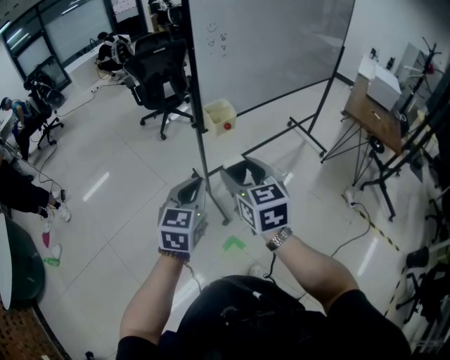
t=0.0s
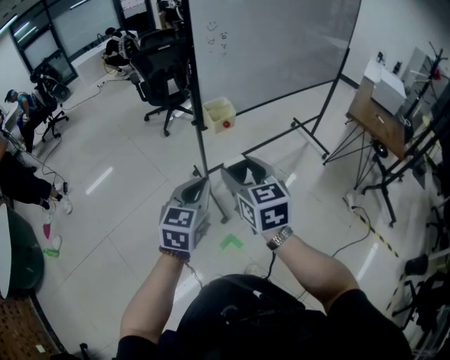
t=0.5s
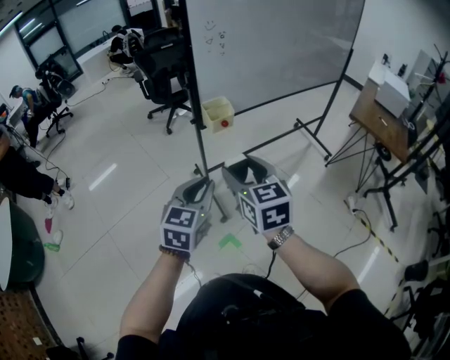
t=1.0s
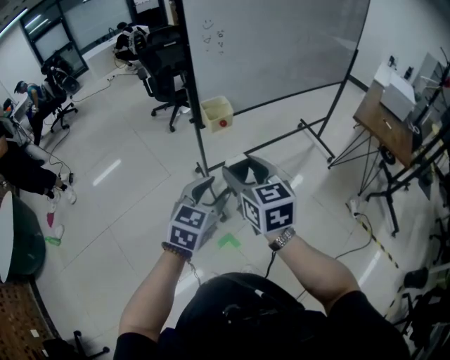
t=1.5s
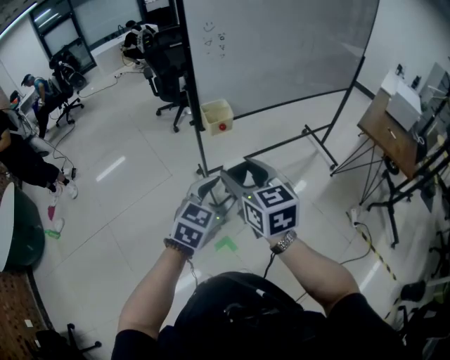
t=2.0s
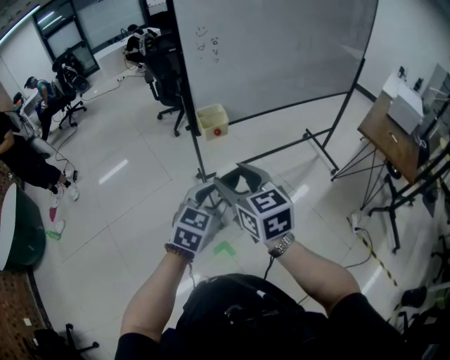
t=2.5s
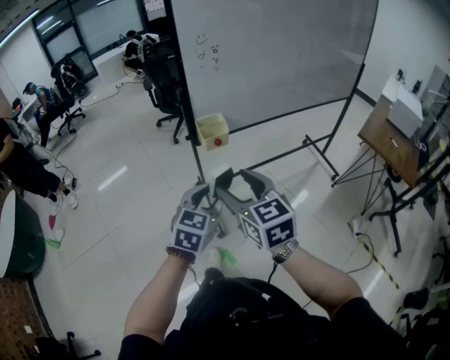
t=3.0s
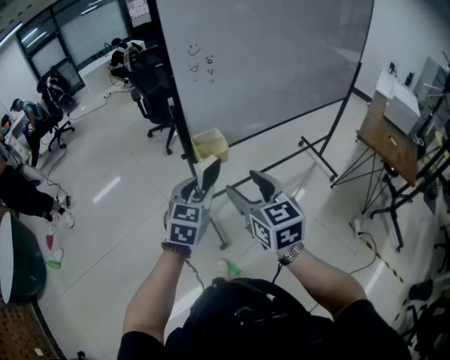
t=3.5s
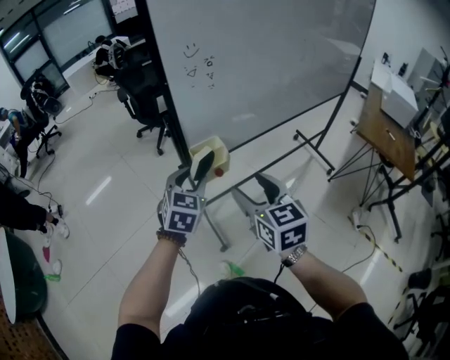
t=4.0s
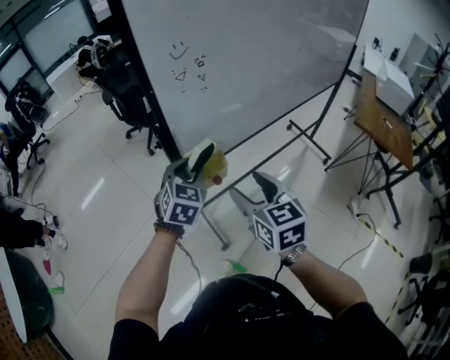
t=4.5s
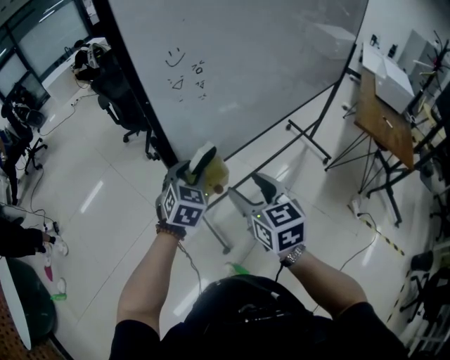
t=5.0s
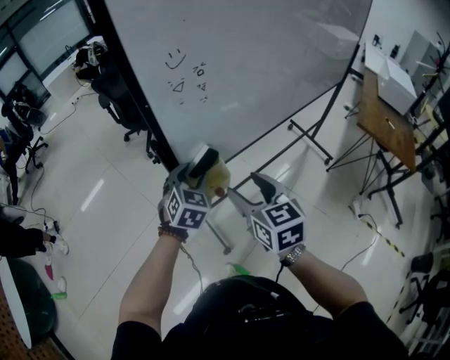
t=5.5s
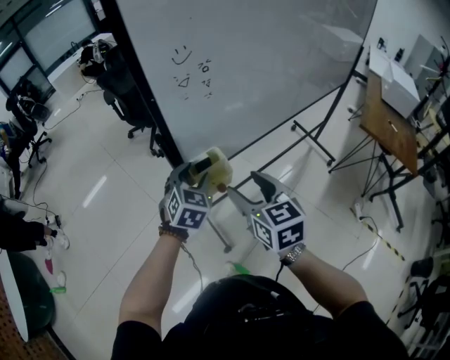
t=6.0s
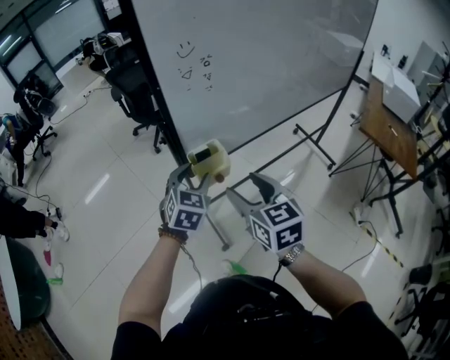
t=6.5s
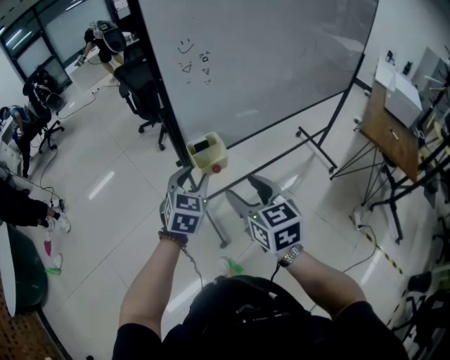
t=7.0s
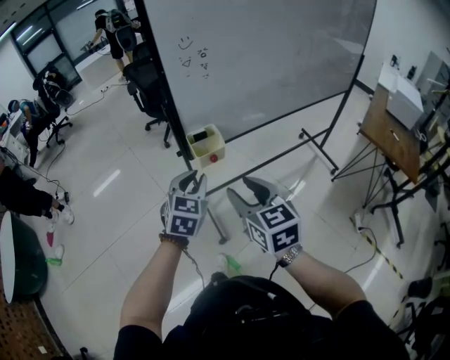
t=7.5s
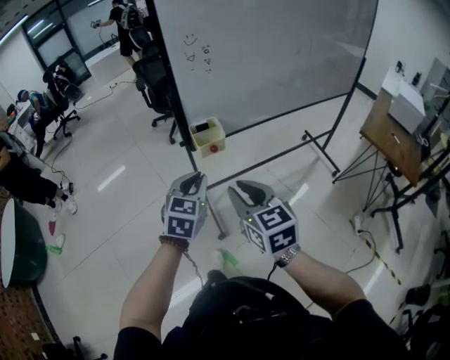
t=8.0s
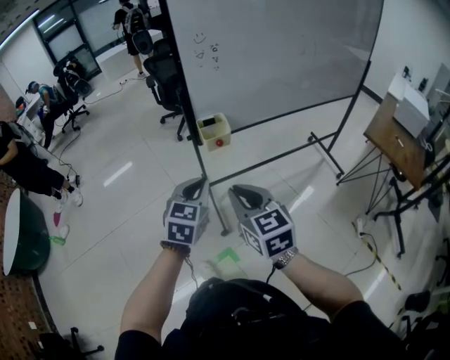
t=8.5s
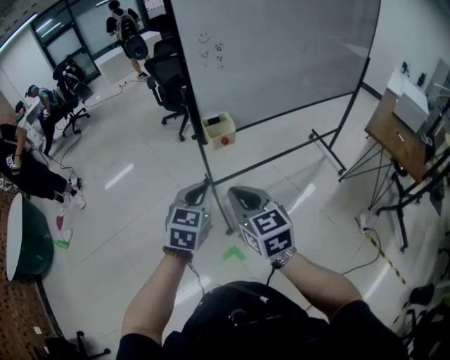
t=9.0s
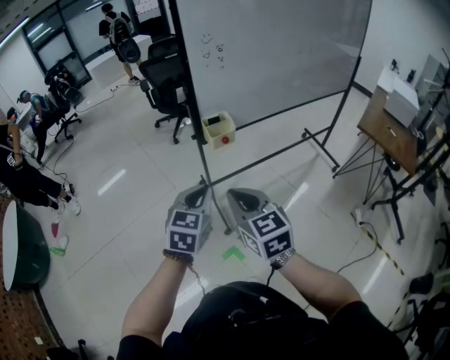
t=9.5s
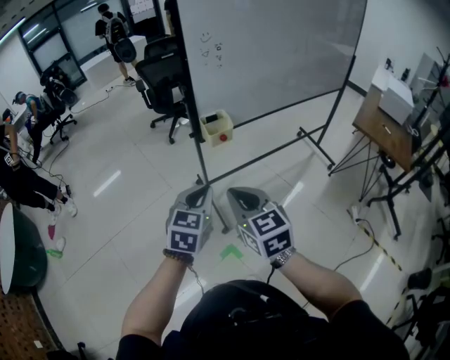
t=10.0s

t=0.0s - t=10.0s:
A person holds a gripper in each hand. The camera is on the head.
t=0.0s - t=2.0s: The left gripper heads to the right, covering some 15 cm, and opens. Meanwhile the right gripper heads to the right, covering approximately 10 cm.
t=2.0s - t=4.0s: The right gripper travels forward by some 20 cm. Meanwhile the left gripper shifts approximately 30 cm forward, and closes up.
t=4.0s - t=6.0s: The grippers both shift forward by about 10 cm.
t=6.0s - t=8.0s: The two grippers go about 20 cm backward. The right gripper closes its fingers; the left gripper closes up.
t=8.0s - t=10.0s: The left gripper is displaced backward by roughly 10 cm. Meanwhile the right gripper shifts approximately 10 cm to the left and backward.

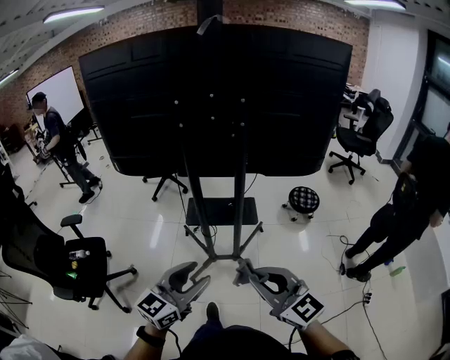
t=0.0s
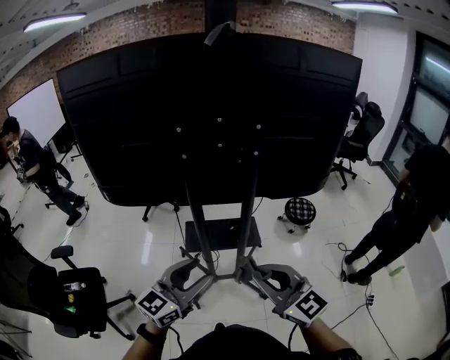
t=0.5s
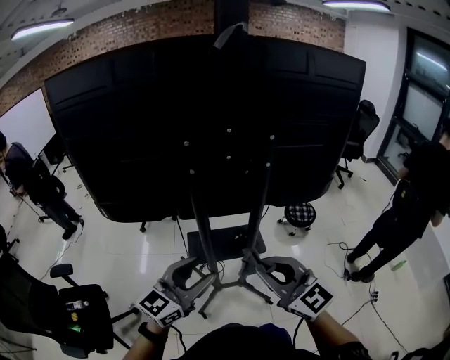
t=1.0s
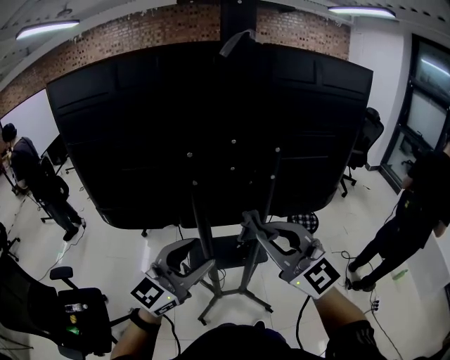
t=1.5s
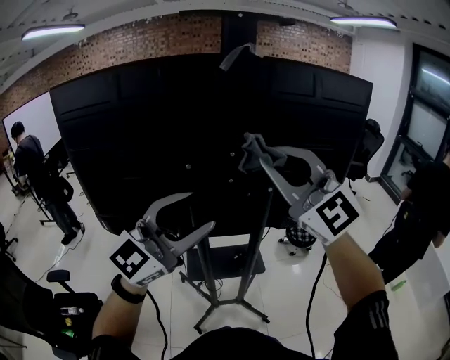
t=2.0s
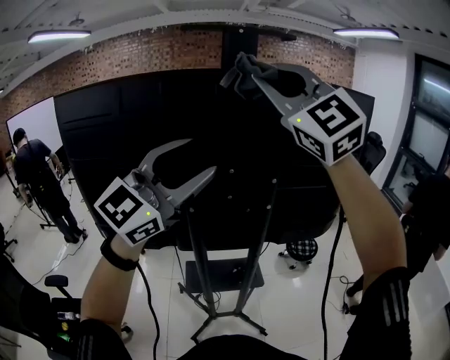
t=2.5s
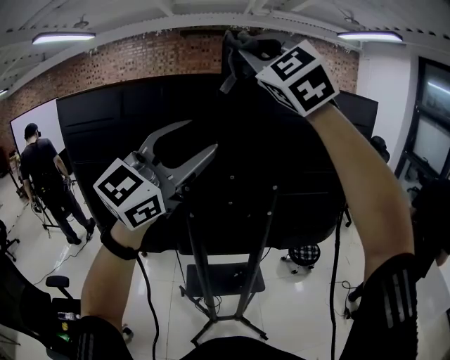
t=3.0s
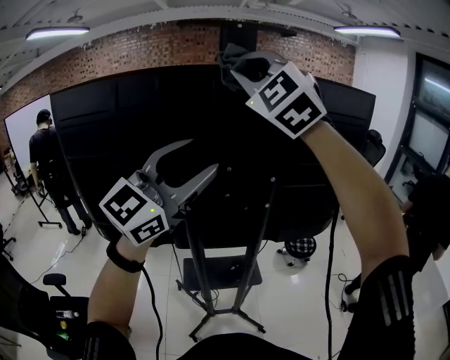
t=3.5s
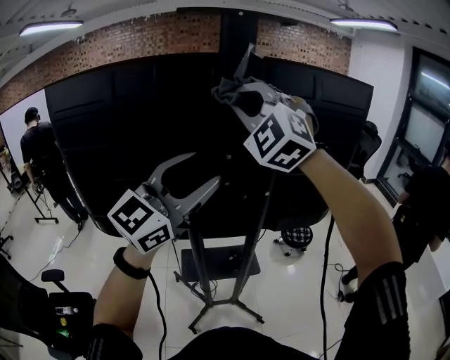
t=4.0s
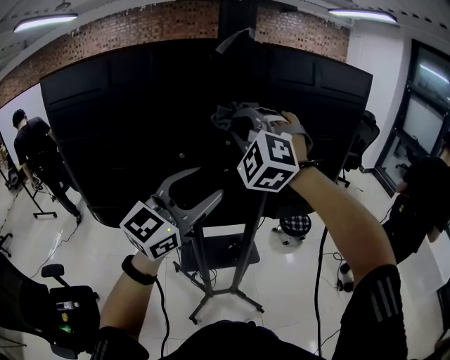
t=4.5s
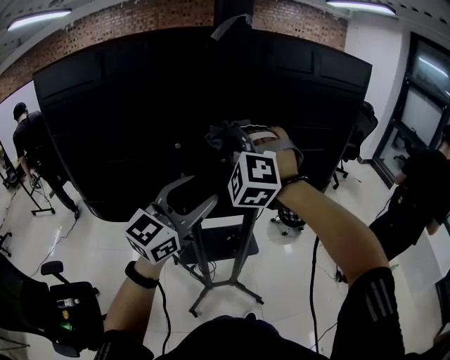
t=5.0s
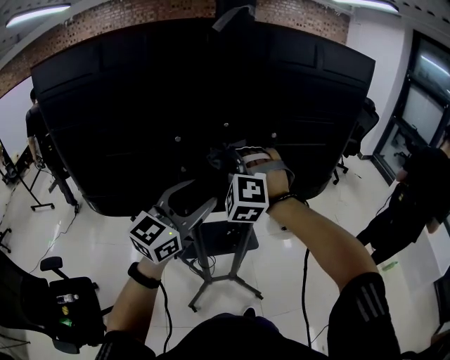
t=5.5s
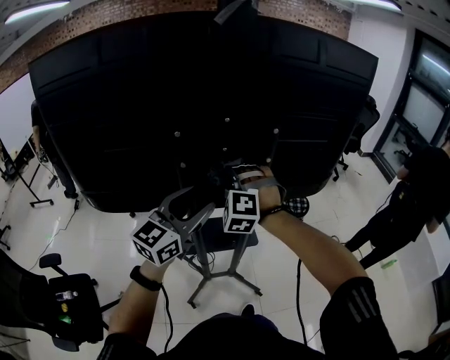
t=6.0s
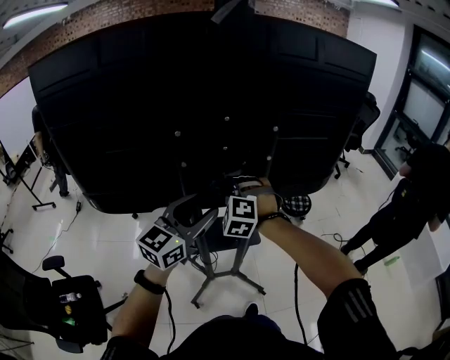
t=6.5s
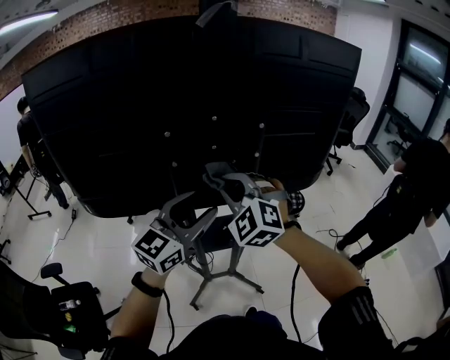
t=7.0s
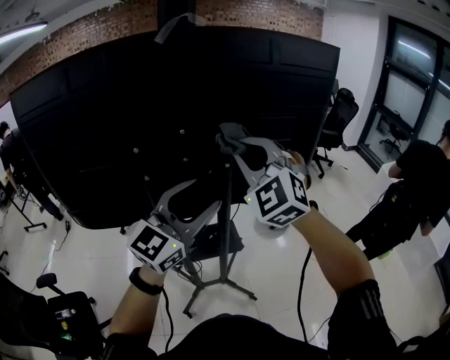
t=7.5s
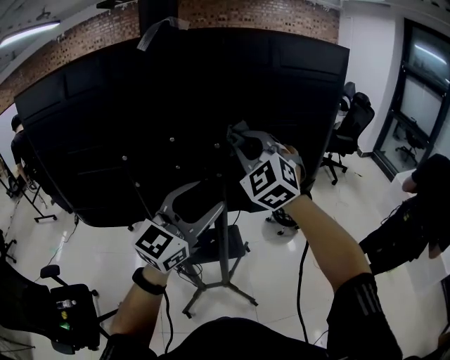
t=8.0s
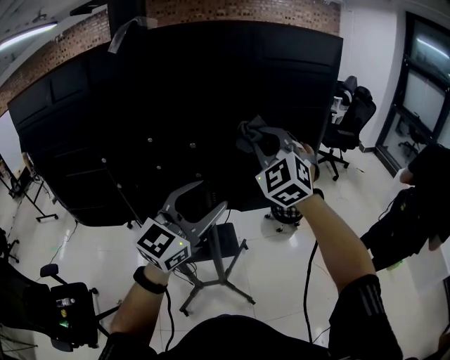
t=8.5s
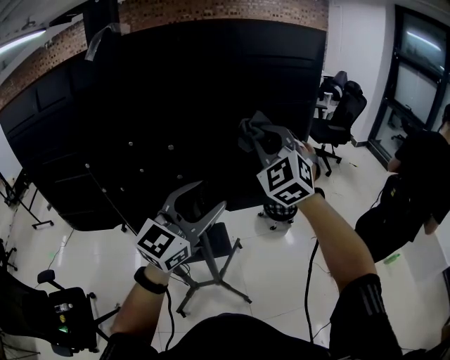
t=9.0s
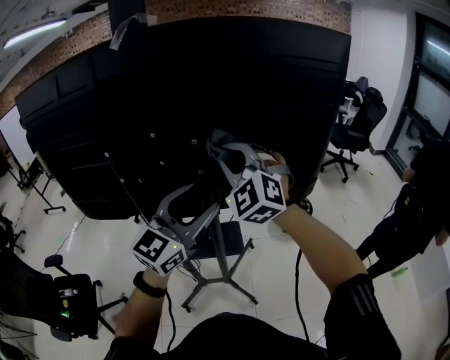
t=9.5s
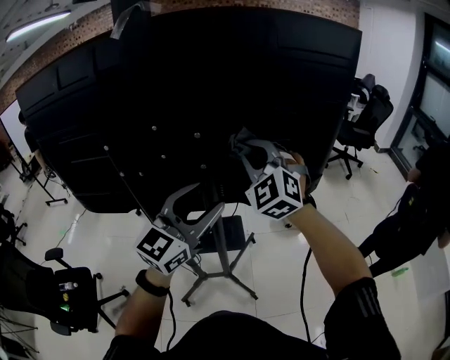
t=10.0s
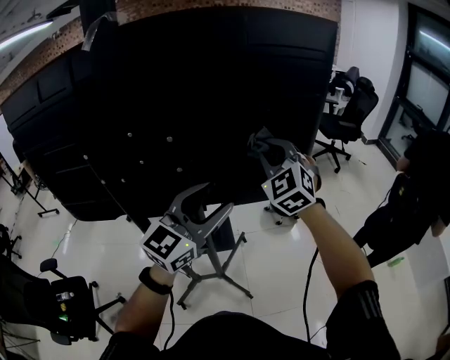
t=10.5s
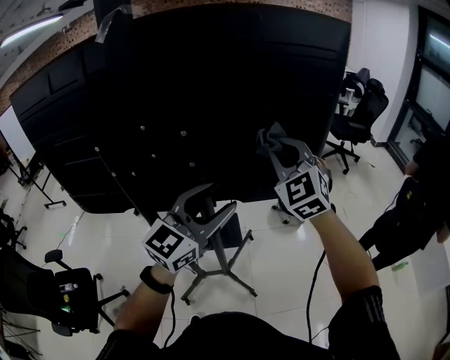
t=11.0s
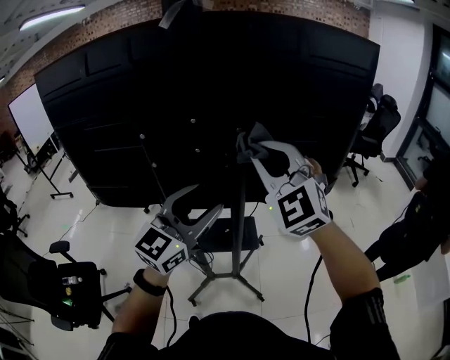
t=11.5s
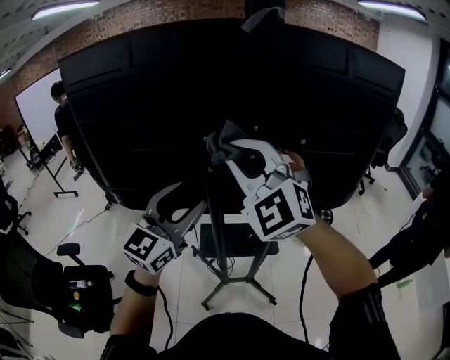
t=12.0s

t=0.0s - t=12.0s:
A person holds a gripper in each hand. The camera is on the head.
t=0.0s - t=2.0s: Both grippers travel together forward and upward, approximately 40 cm. The left gripper turns by roughly 40 degrees. The right gripper changes its angle by some 40 degrees.
t=2.0s - t=4.0s: The left gripper shifts roughly 10 cm forward and upward; the right gripper heads forward and to the left, covering approximately 15 cm, moves roughly 25 cm upward and comes back, and turns by approximately 40 degrees.
t=4.0s - t=6.0s: The left gripper moves downward, about 20 cm, and swivels roughly 20 degrees, while the right gripper is displaced downward by approximately 35 cm, and turns by approximately 30 degrees.
t=6.0s - t=8.0s: The left gripper is displaced to the right and upward by approximately 15 cm. The right gripper heads upward and to the right, covering about 25 cm, and rotates roughly 40 degrees.
t=8.0s - t=10.0s: The right gripper travels downward by approximately 5 cm, and travels to the right and back again, approximately 15 cm each way.
t=10.0s - t=12.0s: The left gripper travels to the left by about 25 cm; the right gripper goes roughly 30 cm to the left and backward.

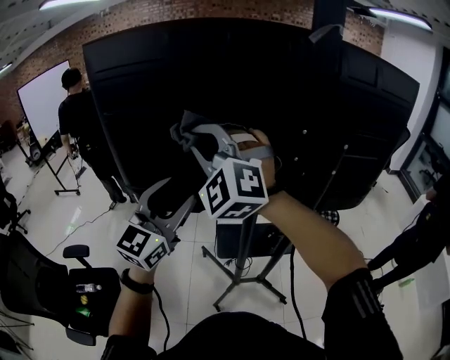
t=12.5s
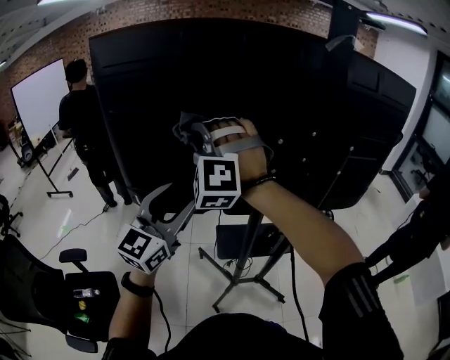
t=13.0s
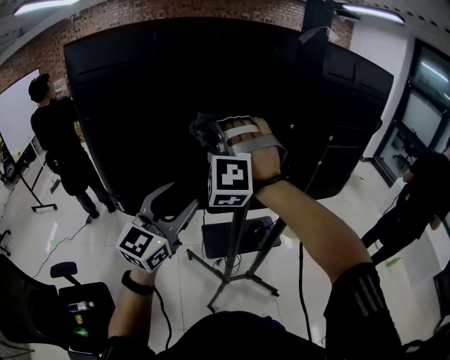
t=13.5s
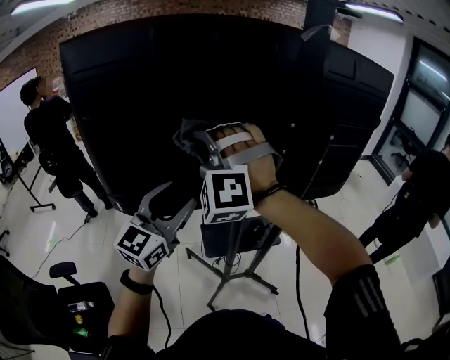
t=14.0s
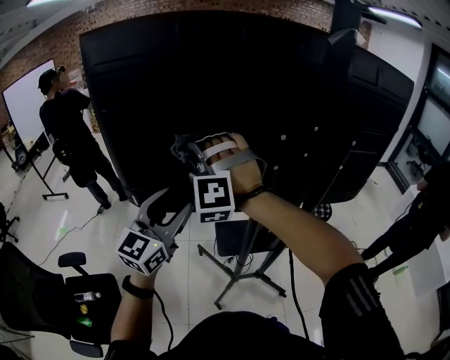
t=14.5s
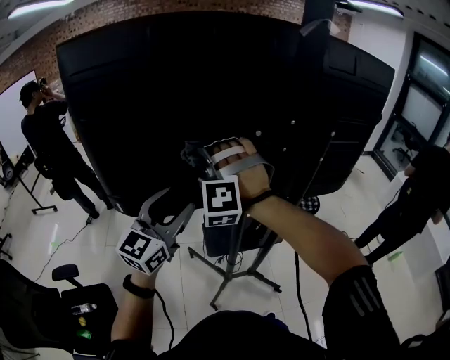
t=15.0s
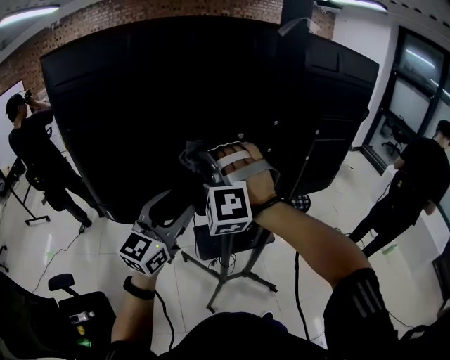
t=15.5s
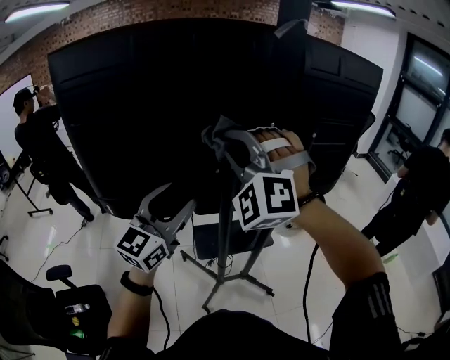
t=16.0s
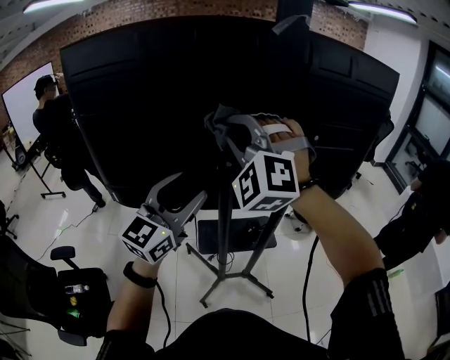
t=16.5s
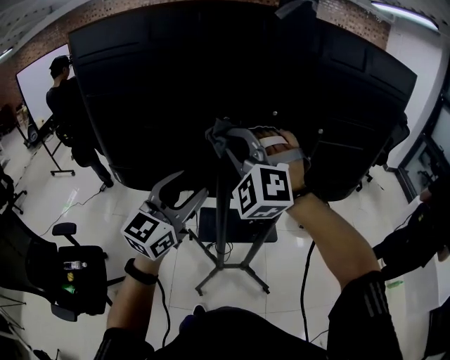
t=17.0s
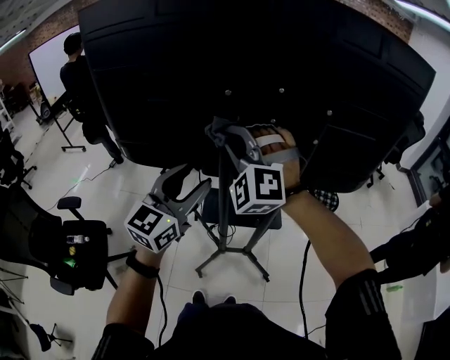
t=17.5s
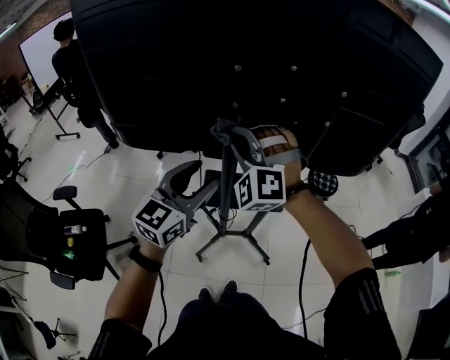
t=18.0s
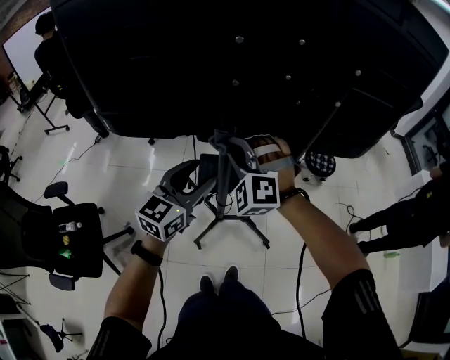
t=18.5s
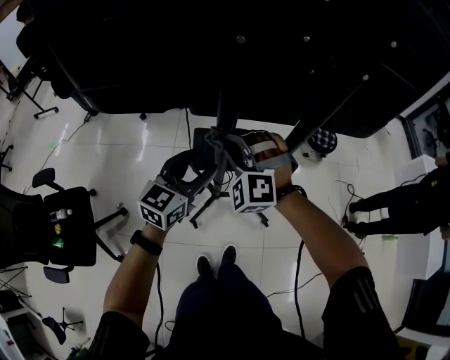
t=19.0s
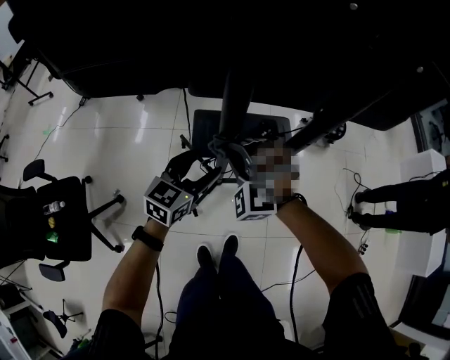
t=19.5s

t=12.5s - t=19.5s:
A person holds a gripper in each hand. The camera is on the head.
t=12.5s - t=14.5s: The right gripper moves left and right over about 10 cm, changing direction 2 times, and turns by about 30 degrees; the left gripper shifts roughly 10 cm to the left and downward.
t=14.5s - t=16.0s: The left gripper heads to the right, covering approximately 10 cm, while the right gripper travels to the right and upward by about 20 cm.
t=16.0s - t=17.5s: The right gripper shifts approximately 10 cm downward, while the left gripper travels to the right and downward by some 10 cm.
t=17.5s - t=19.5s: Both grippers move downward, roughly 35 cm. The right gripper rotates approximately 30 degrees, while the left gripper rotates some 30 degrees.
